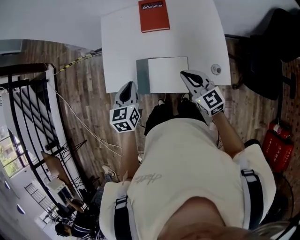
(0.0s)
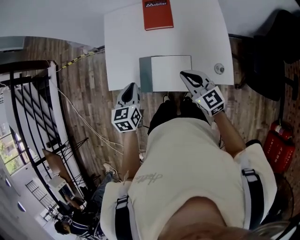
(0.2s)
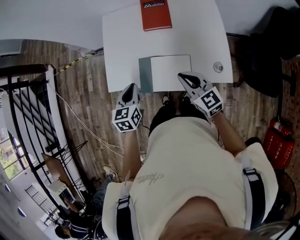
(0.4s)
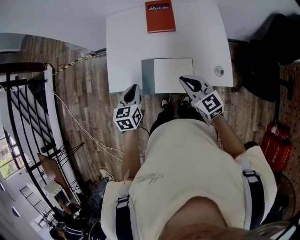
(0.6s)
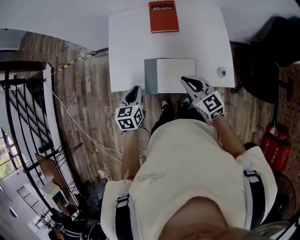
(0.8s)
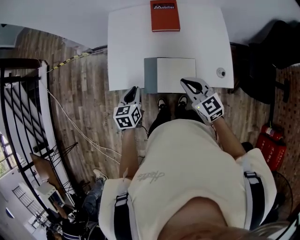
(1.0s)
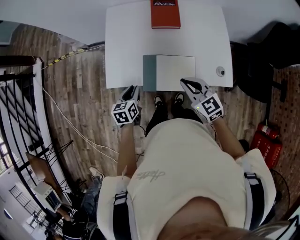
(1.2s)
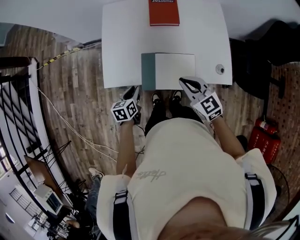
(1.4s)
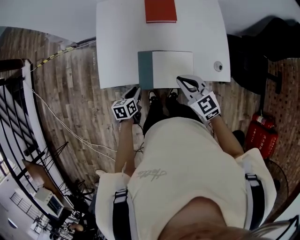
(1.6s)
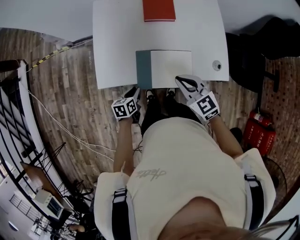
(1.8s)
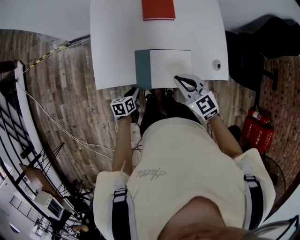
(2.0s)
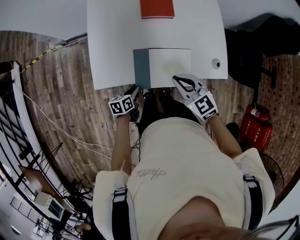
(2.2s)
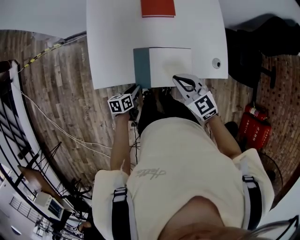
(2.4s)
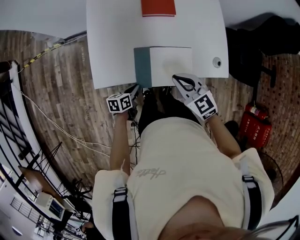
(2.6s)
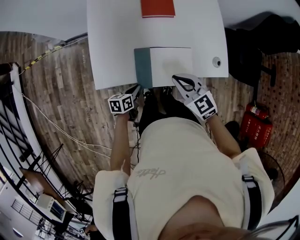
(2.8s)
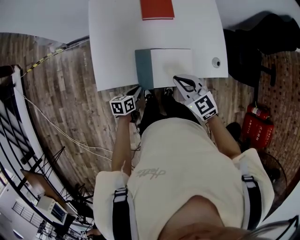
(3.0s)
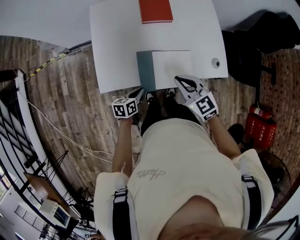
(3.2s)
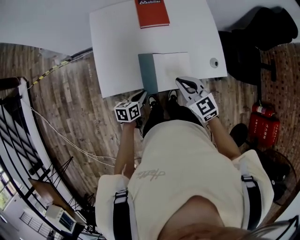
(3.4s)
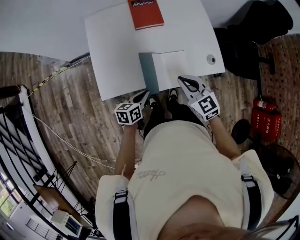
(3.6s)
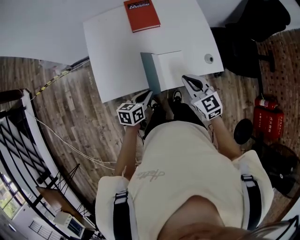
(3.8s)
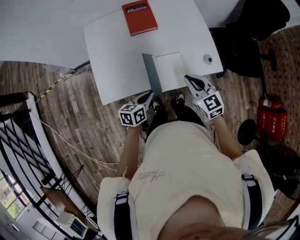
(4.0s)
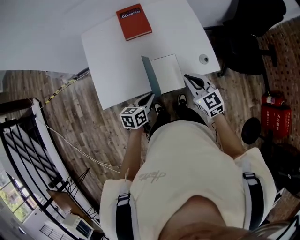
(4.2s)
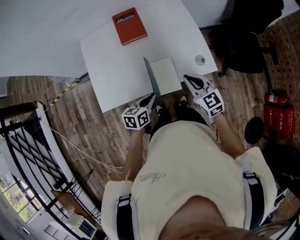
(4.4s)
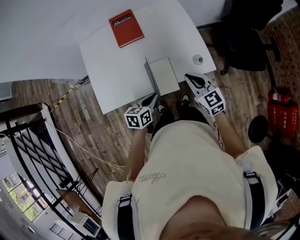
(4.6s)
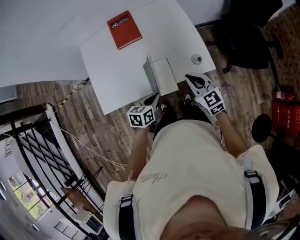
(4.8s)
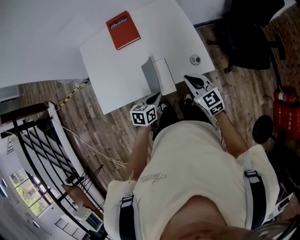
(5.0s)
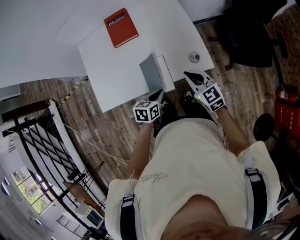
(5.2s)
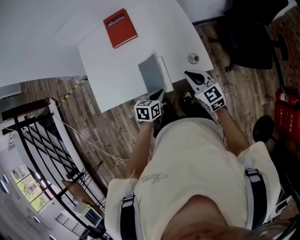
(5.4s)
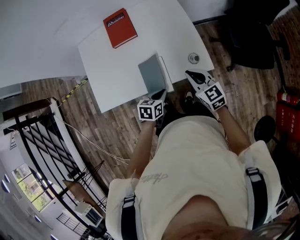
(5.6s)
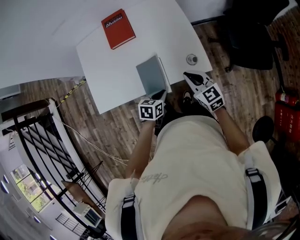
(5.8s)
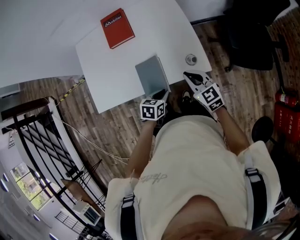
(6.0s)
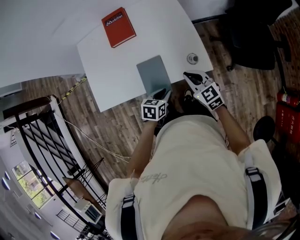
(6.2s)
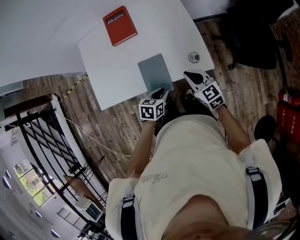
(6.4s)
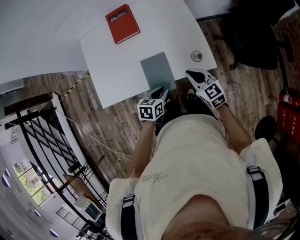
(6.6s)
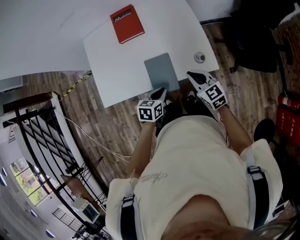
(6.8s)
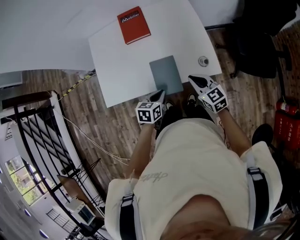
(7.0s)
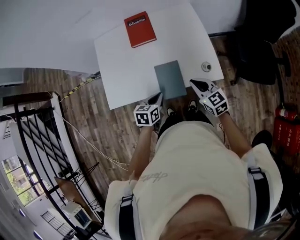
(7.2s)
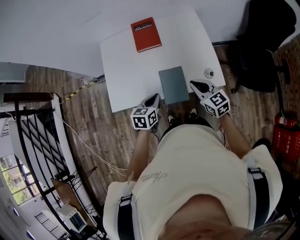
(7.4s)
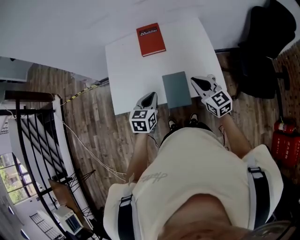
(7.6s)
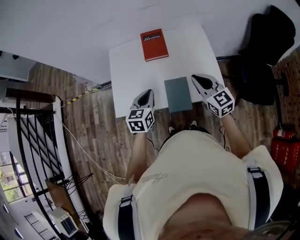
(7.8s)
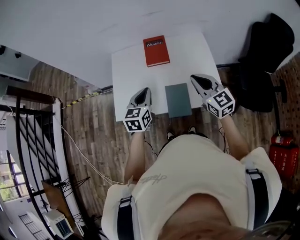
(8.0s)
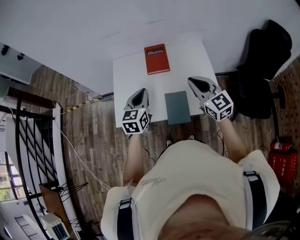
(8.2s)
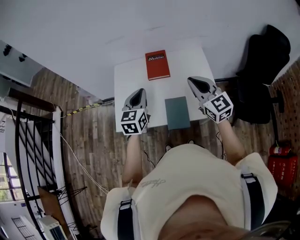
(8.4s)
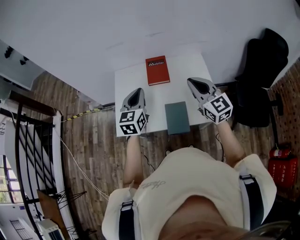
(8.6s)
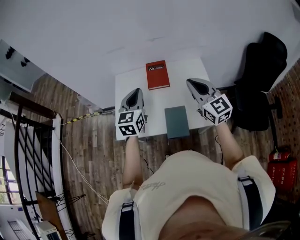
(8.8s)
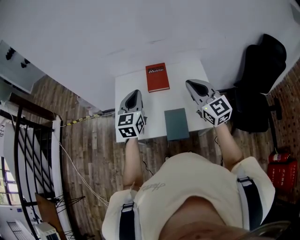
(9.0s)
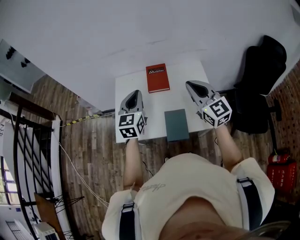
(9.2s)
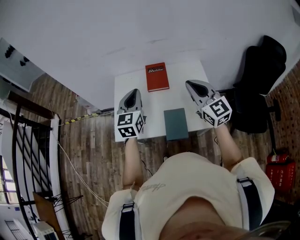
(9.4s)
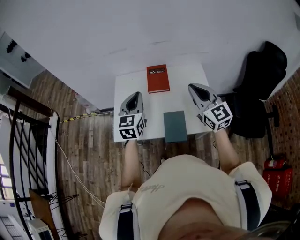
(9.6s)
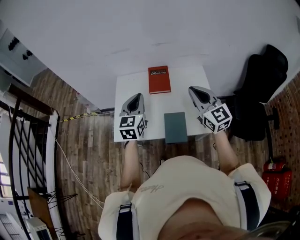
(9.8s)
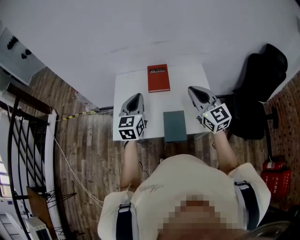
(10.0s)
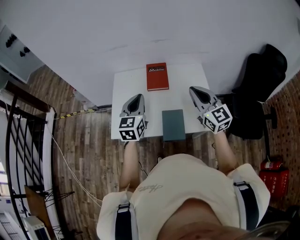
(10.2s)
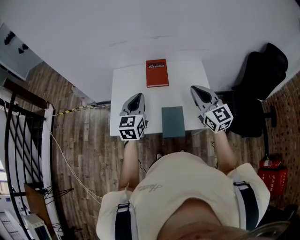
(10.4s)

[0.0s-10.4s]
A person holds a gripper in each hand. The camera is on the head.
0.0s to 1.4s: The left gripper shifts approximately 20 cm downward and to the left, and swivels roughly 30 degrees. The right gripper shifts some 10 cm to the left.
1.4s to 3.0s: The left gripper shifts approximately 5 cm downward, and changes its angle by approximately 20 degrees.
3.0s to 4.4s: The right gripper travels to the right by approximately 15 cm, and swivels roughly 20 degrees; the left gripper heads upward and to the right, covering some 20 cm.
4.4s to 6.0s: The two grippers go roughly 15 cm to the right and downward.
6.0s to 7.4s: The left gripper goes roughly 15 cm to the left and upward; the right gripper shifts about 10 cm to the left.
7.4s to 9.0s: The left gripper moves upward and forward, some 30 cm, and rotates about 40 degrees; the right gripper goes about 25 cm upward, and swivels about 30 degrees.
9.0s to 10.4s: The grippers make only small movements.

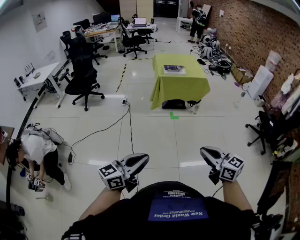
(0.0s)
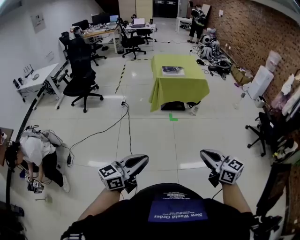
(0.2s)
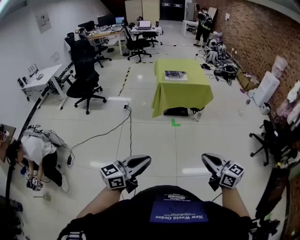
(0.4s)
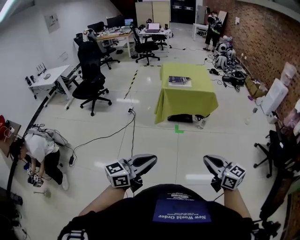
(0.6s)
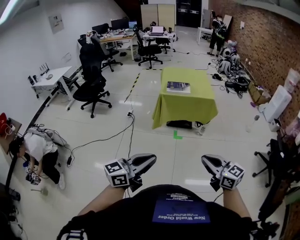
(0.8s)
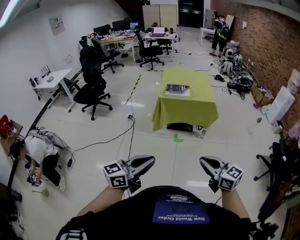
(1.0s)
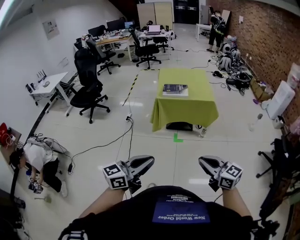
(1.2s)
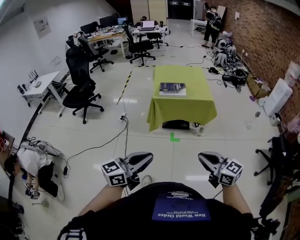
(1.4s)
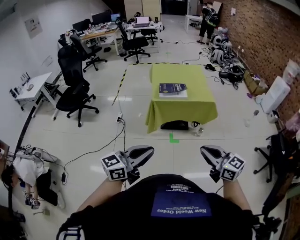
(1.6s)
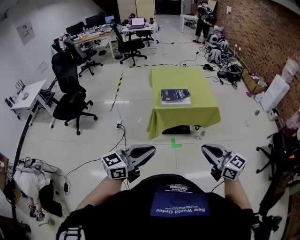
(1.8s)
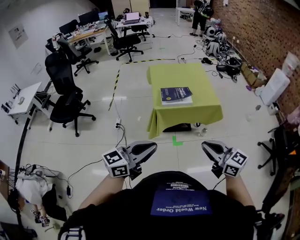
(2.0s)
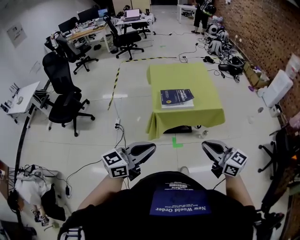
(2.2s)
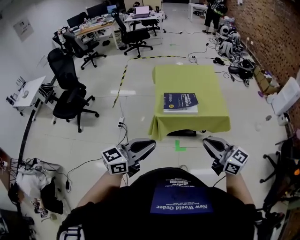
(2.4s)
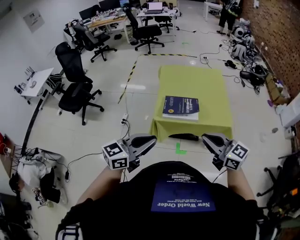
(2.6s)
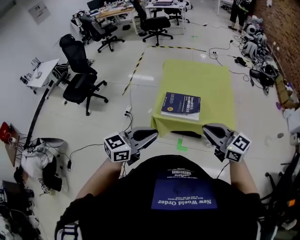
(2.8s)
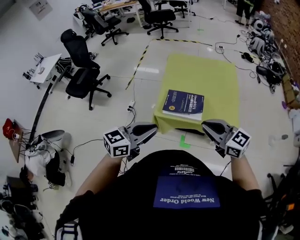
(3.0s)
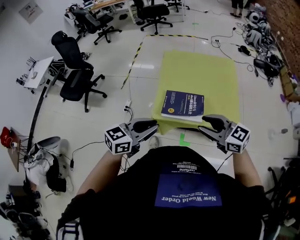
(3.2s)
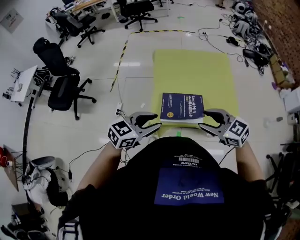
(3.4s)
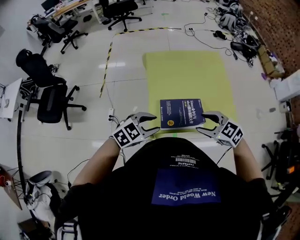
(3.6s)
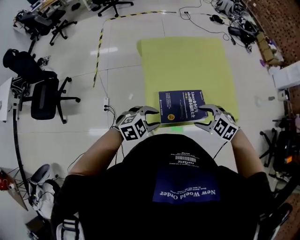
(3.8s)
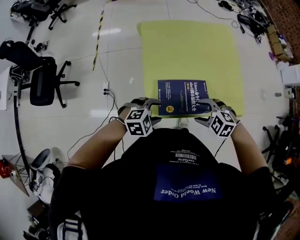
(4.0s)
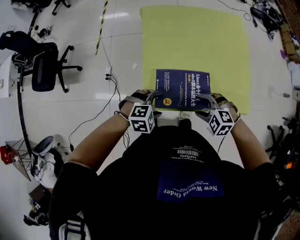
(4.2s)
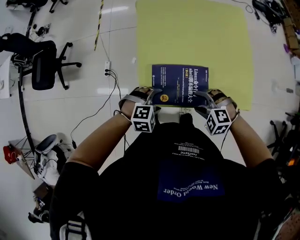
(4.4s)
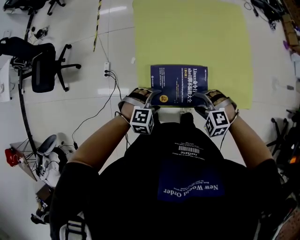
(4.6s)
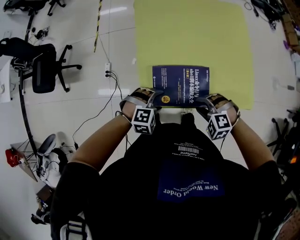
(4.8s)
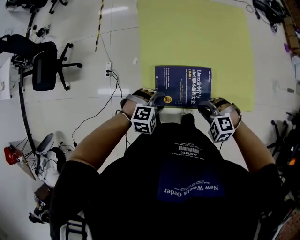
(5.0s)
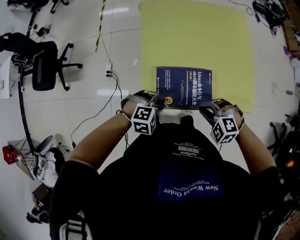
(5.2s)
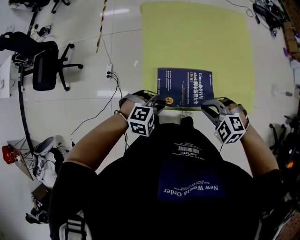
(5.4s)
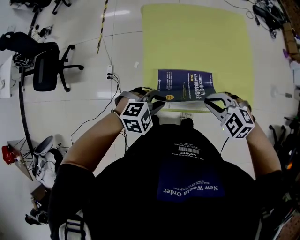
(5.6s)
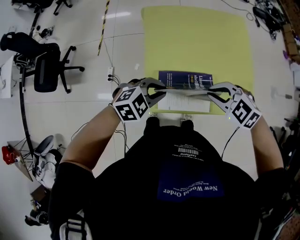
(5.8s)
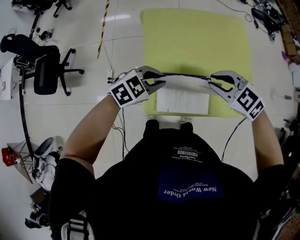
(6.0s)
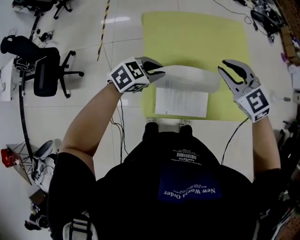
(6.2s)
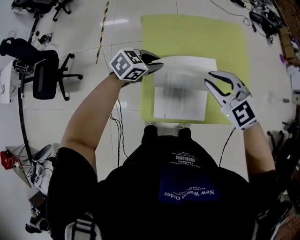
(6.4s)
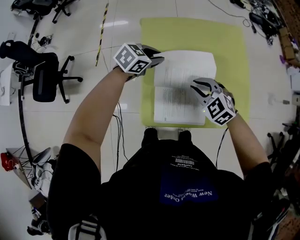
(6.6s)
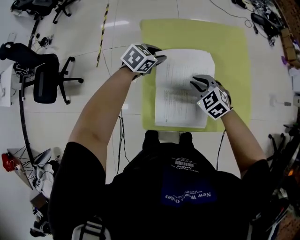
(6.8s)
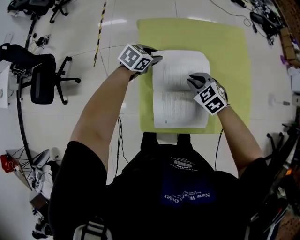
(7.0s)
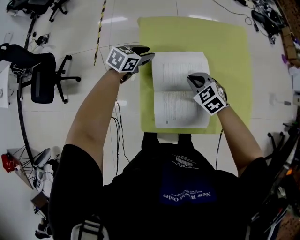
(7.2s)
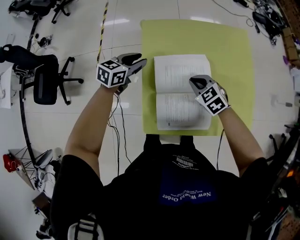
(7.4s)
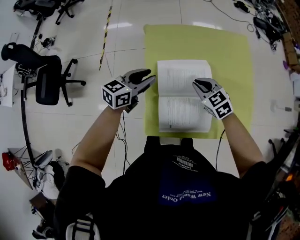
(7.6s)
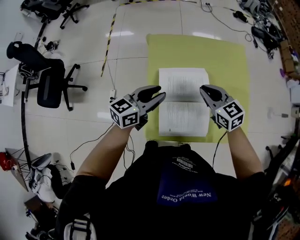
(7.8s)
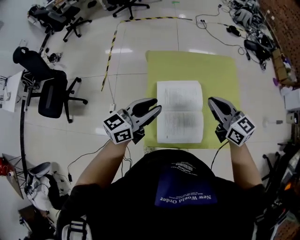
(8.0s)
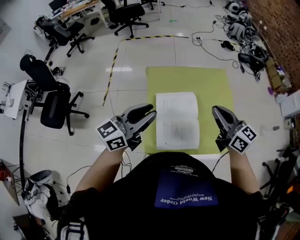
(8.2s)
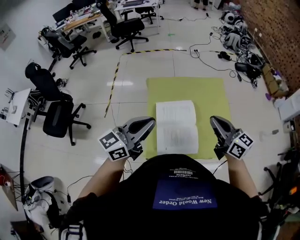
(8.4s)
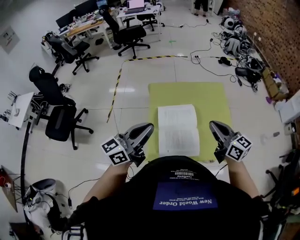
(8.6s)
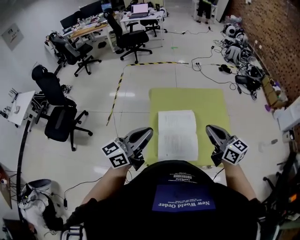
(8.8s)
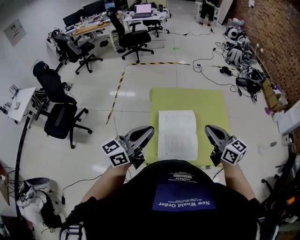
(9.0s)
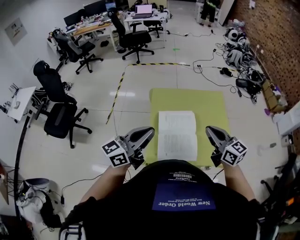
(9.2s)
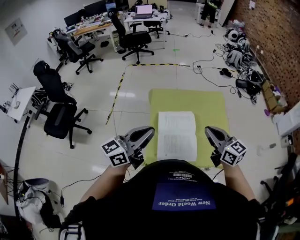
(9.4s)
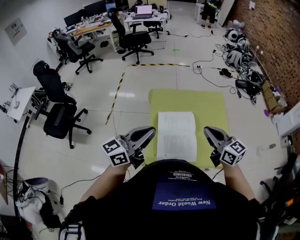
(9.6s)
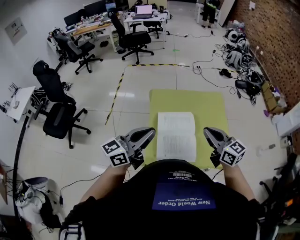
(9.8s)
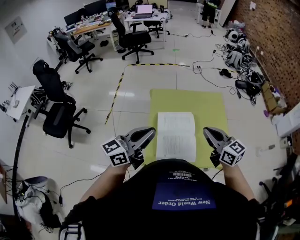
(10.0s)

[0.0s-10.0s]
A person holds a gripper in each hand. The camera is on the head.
0.0s to 1.4s: Both grippers are carried forward and to the right, approximately 40 cm.
1.4s to 2.8s: The pair of grippers is taken forward, some 50 cm.
2.8s to 4.2s: Both grippers move downward, about 30 cm. The right gripper points its fingers some 50 degrees further downward, and opens up, while the left gripper tips its fingers downward by approximately 50 degrees, and opens up.
4.2s to 5.8s: Both grippers travel together upward, roughly 10 cm. The left gripper closes, while the right gripper closes.
5.8s to 7.2s: The right gripper moves about 20 cm, and turns by approximately 20 degrees. The left gripper moves approximately 30 cm, and turns by roughly 40 degrees.
7.2s to 8.6s: The two grippers go roughly 35 cm upward and backward. The right gripper tips its fingers upward by about 40 degrees. Meanwhile the left gripper angles its fingers upward, by approximately 50 degrees, and closes its fingers.
8.6s to 10.0s: There are only small adjustments of the grippers.

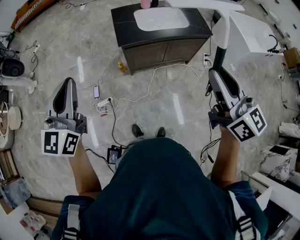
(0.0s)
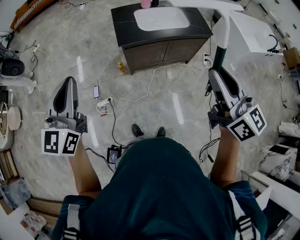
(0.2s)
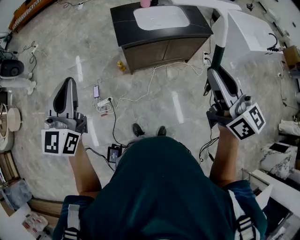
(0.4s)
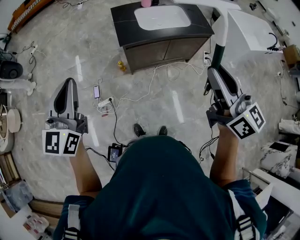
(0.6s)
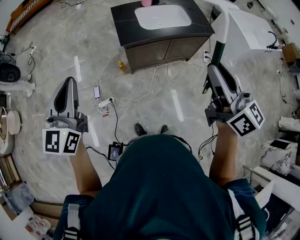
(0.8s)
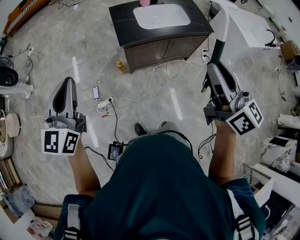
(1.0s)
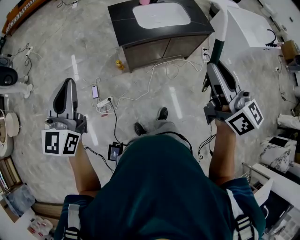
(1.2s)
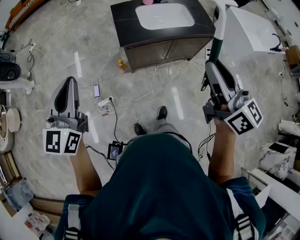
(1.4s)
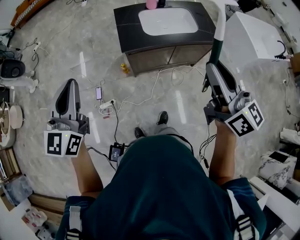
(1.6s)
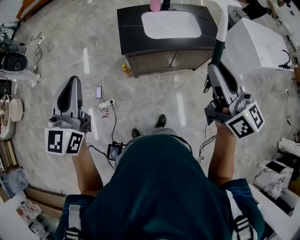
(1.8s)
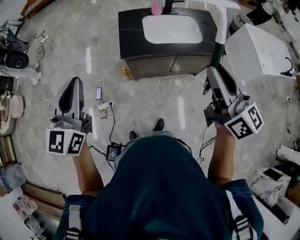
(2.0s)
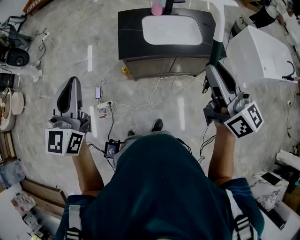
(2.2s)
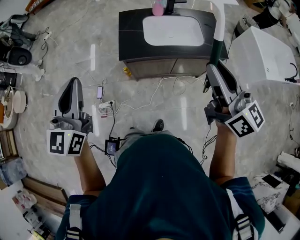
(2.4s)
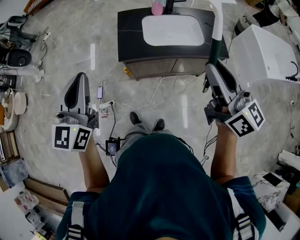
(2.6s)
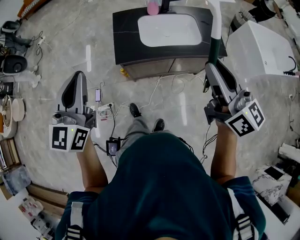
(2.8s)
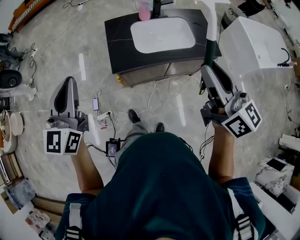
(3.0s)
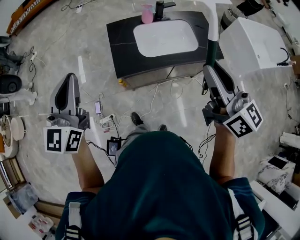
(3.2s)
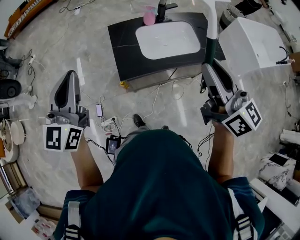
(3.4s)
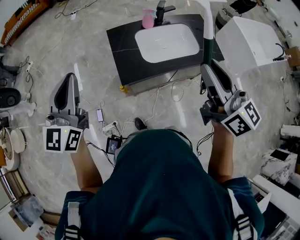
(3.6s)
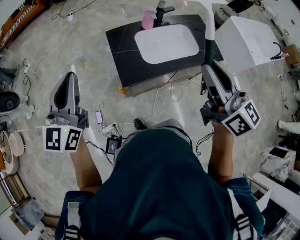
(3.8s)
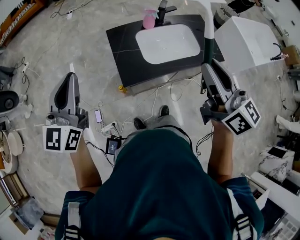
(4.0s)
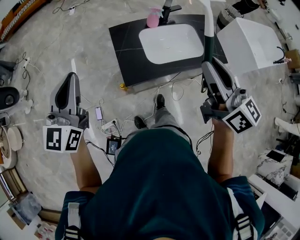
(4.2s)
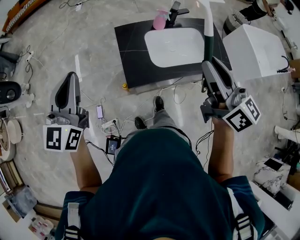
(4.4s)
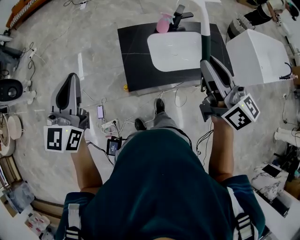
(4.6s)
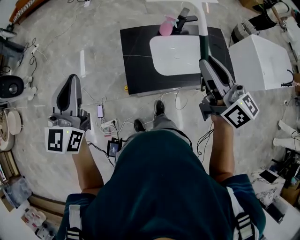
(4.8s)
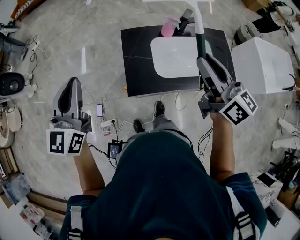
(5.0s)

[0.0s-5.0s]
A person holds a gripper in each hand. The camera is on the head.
0.0s to 1.6s: The grippers both shift forward by some 10 cm.
1.6s to 3.4s: The two grippers go some 20 cm forward.
3.4s to 5.0s: The right gripper is displaced forward by roughly 20 cm; the left gripper shifts some 10 cm forward.
